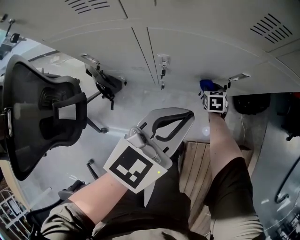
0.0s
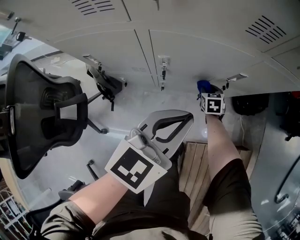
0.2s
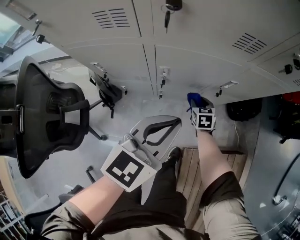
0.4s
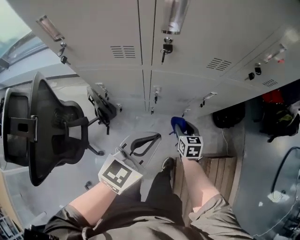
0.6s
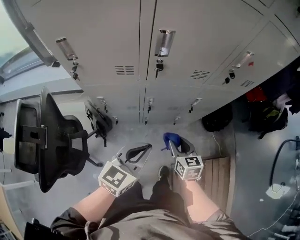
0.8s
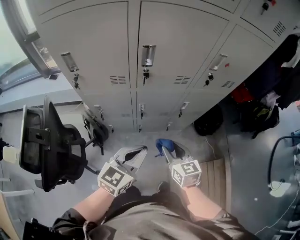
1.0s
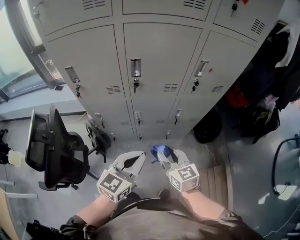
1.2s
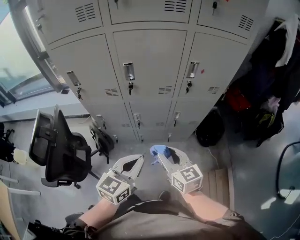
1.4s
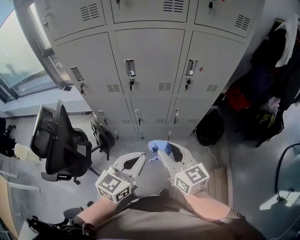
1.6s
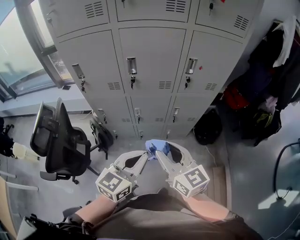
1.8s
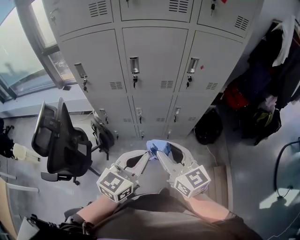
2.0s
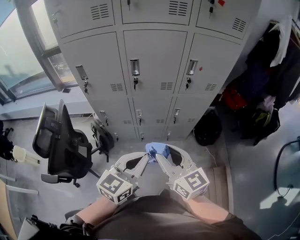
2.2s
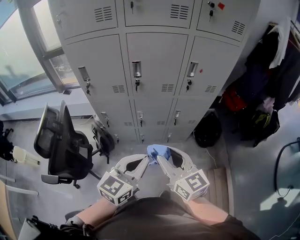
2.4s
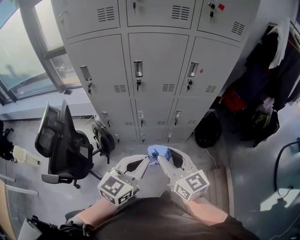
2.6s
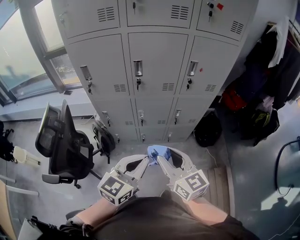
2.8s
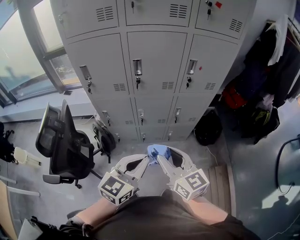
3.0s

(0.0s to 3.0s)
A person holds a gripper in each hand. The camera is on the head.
0.0s - 1.6s: The right gripper is displaced upward and backward by about 70 cm, and tilts its fingers some 40 degrees upward; the left gripper heads upward and backward, covering approximately 30 cm.
1.6s - 3.0s: The grippers both shift backward by some 5 cm.

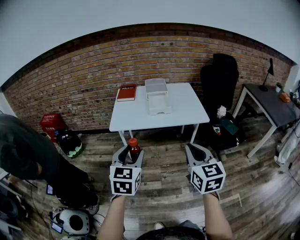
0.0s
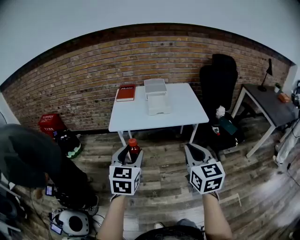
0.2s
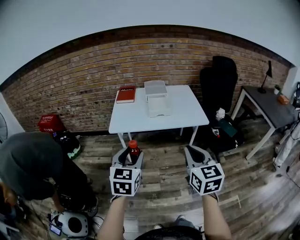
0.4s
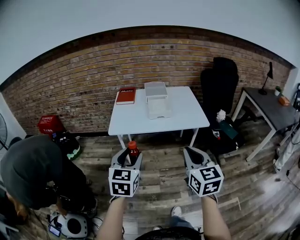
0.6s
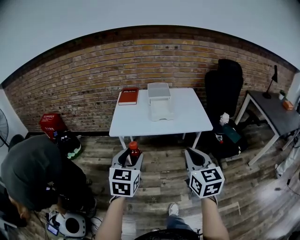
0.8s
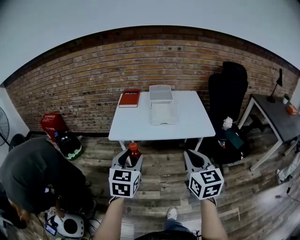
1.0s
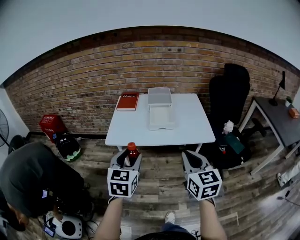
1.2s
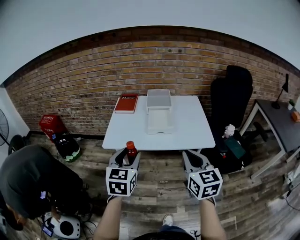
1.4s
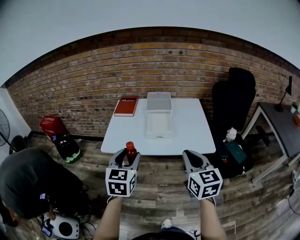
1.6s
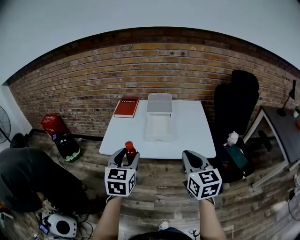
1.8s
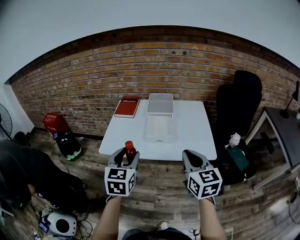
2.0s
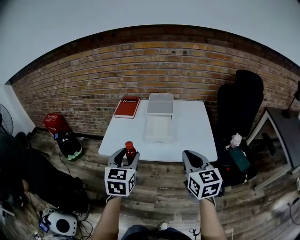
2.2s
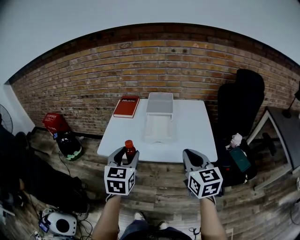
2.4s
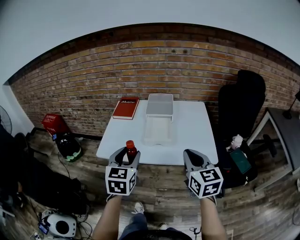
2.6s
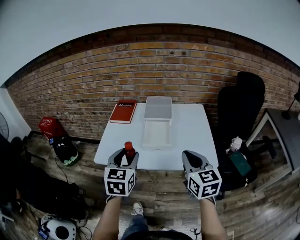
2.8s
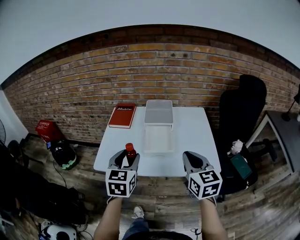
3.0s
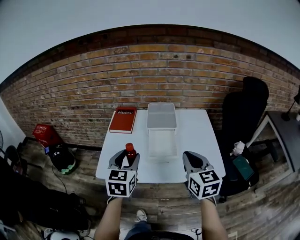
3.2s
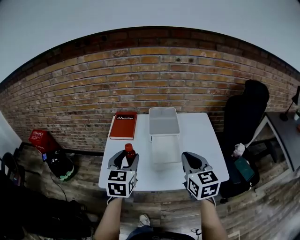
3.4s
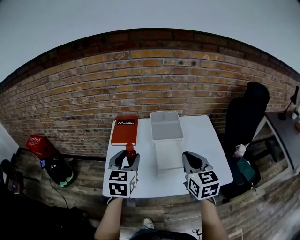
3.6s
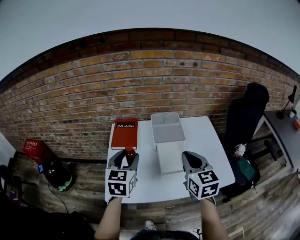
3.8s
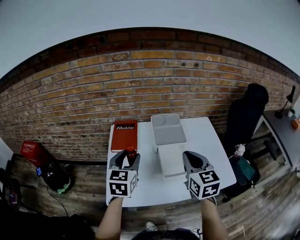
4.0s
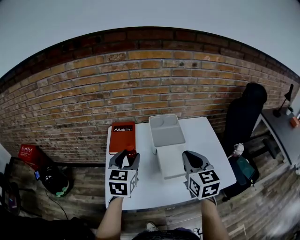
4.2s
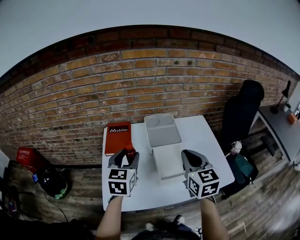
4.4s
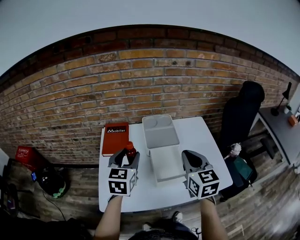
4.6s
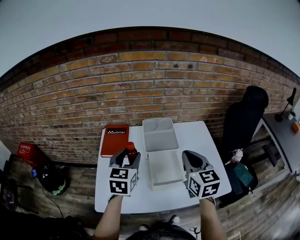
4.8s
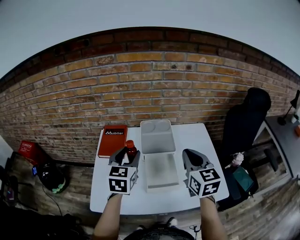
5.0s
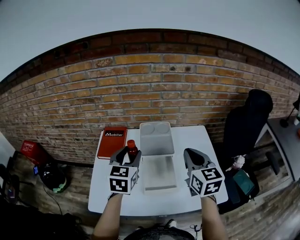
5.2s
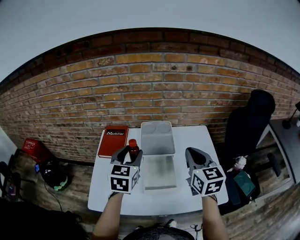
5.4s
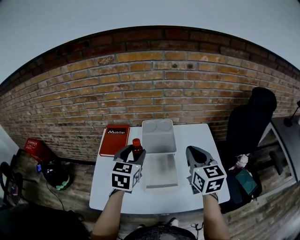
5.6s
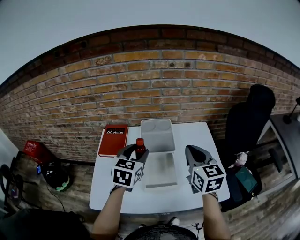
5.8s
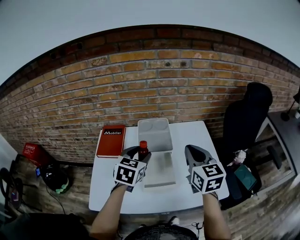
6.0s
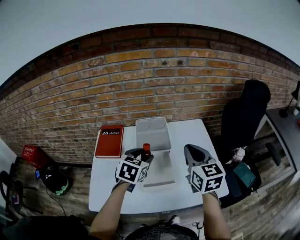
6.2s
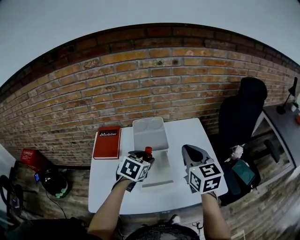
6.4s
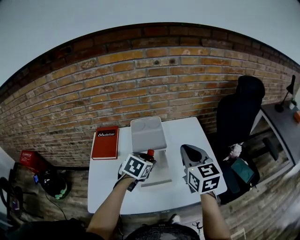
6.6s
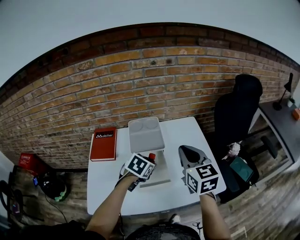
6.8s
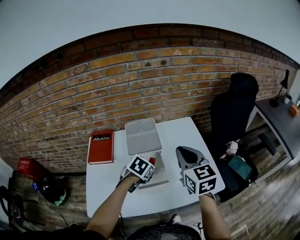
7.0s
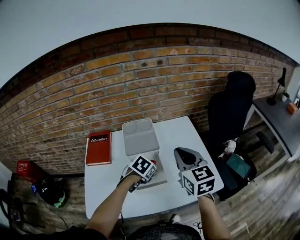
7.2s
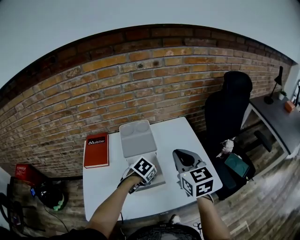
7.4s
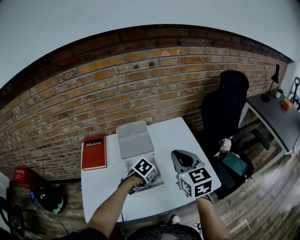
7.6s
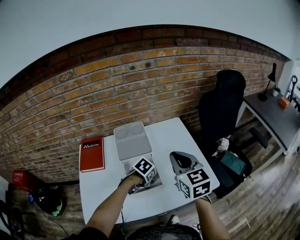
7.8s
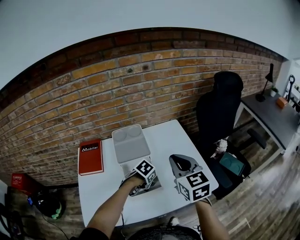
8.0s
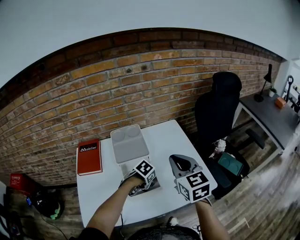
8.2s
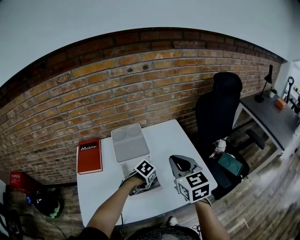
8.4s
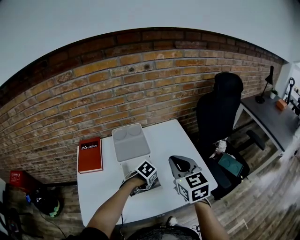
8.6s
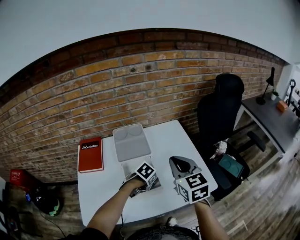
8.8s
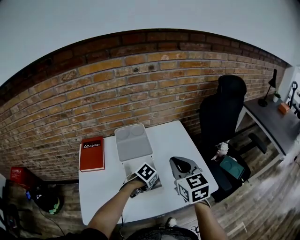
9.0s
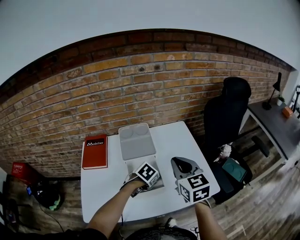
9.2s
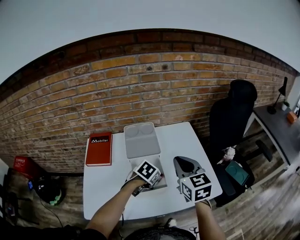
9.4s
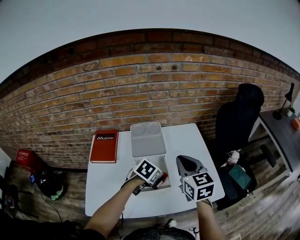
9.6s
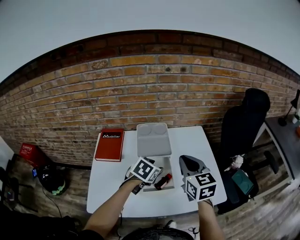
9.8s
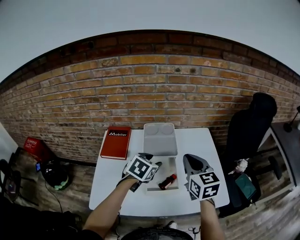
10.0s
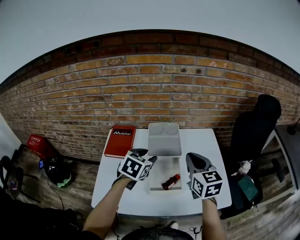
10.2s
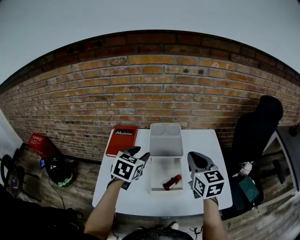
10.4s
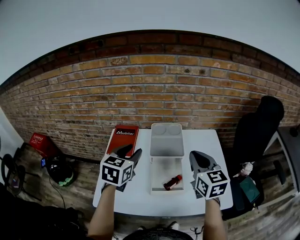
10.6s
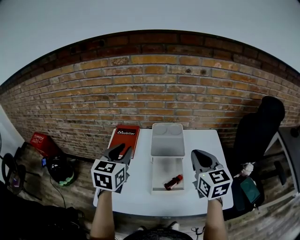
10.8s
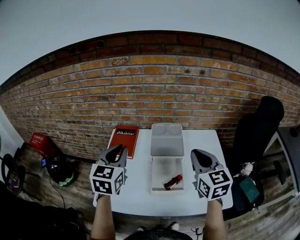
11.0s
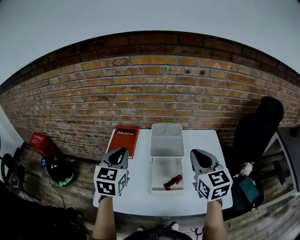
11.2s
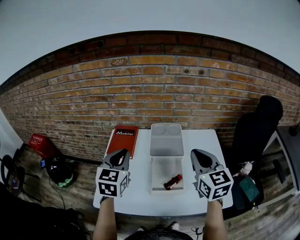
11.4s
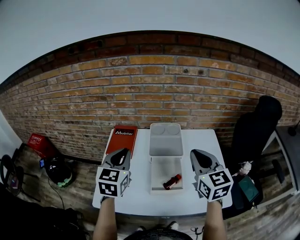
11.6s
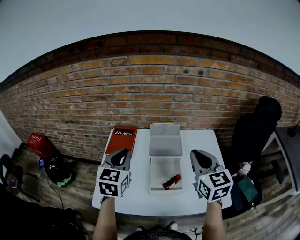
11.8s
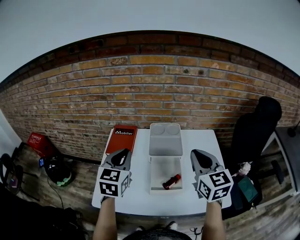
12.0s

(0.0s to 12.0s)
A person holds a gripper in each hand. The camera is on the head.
0.0s - 1.6s: Both grippers travel together forward, roughly 20 cm.
1.6s - 3.0s: The grippers both shift forward by about 15 cm.
3.0s - 4.4s: The grippers both shift forward and to the left by about 20 cm.
4.4s - 6.0s: The right gripper goes about 10 cm to the right and forward, while the left gripper goes some 15 cm to the right.
6.0s - 7.6s: The left gripper goes roughly 20 cm downward, and tilts its fingers some 40 degrees downward.
7.6s - 9.0s: The grippers stay close to where they were, moving slightly.
9.0s - 10.4s: The left gripper travels upward by approximately 20 cm, and points its fingers approximately 40 degrees further upward; the right gripper changes place by roughly 5 cm.
10.4s - 12.0s: The left gripper is displaced to the left and upward by roughly 10 cm, swivels approximately 20 degrees, and closes up.

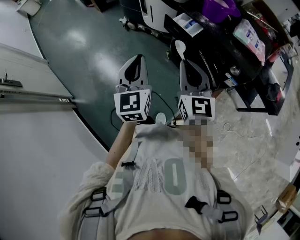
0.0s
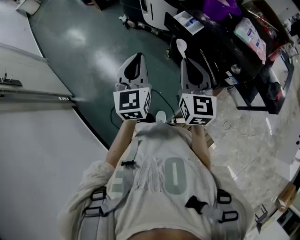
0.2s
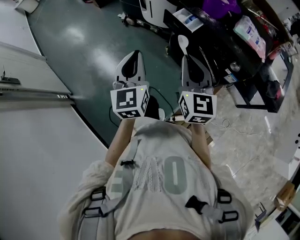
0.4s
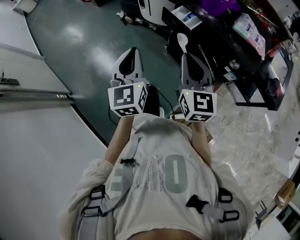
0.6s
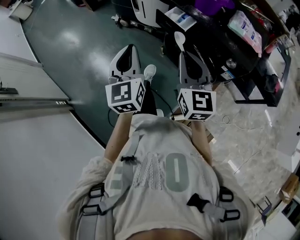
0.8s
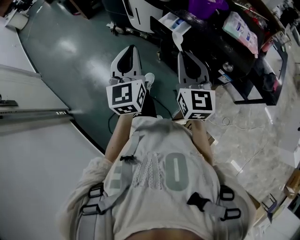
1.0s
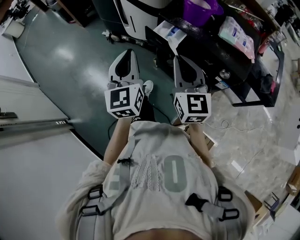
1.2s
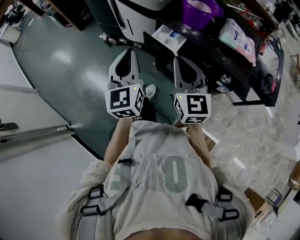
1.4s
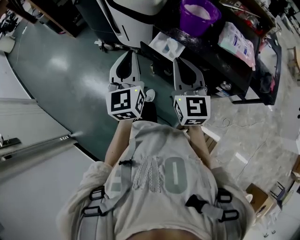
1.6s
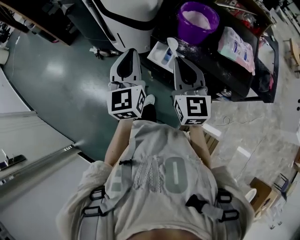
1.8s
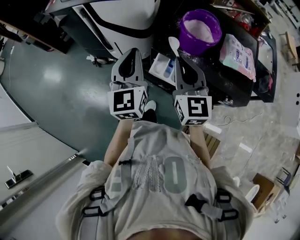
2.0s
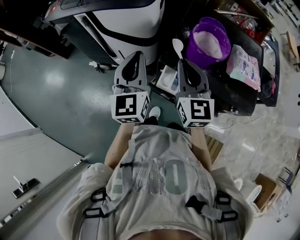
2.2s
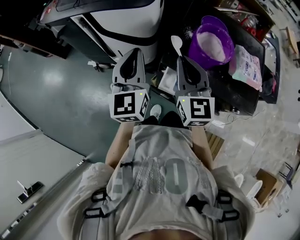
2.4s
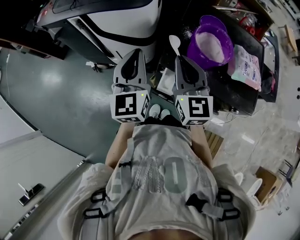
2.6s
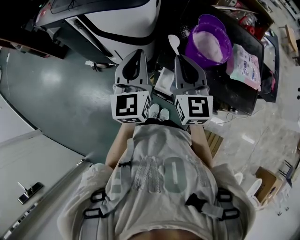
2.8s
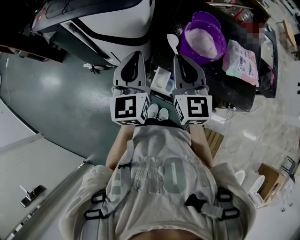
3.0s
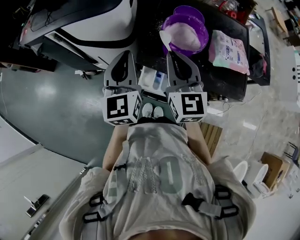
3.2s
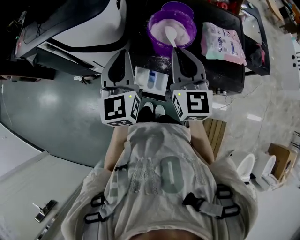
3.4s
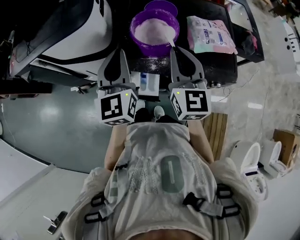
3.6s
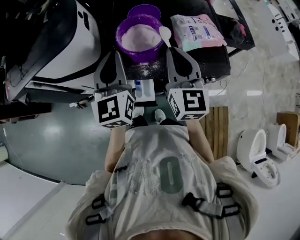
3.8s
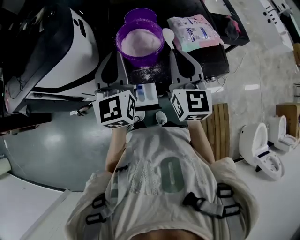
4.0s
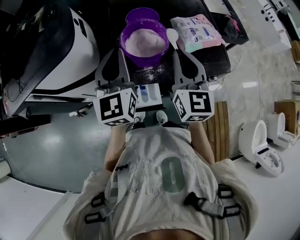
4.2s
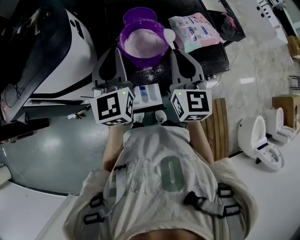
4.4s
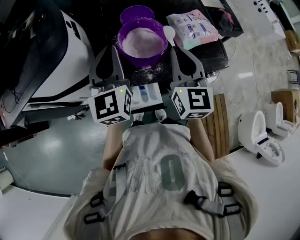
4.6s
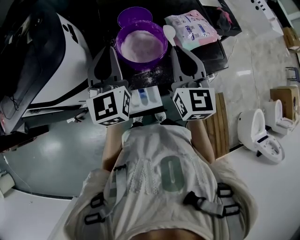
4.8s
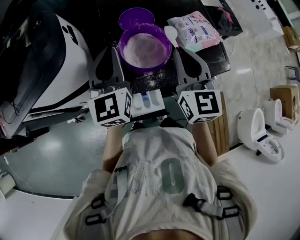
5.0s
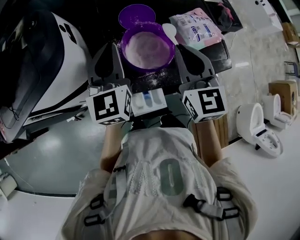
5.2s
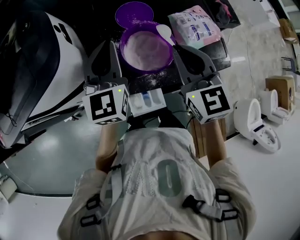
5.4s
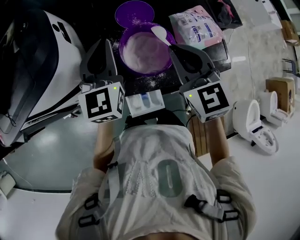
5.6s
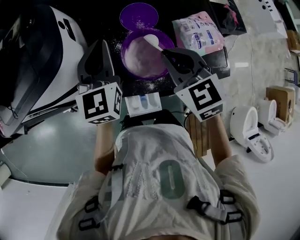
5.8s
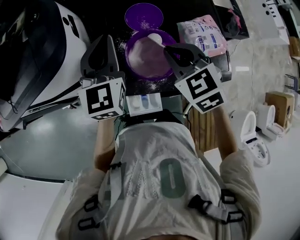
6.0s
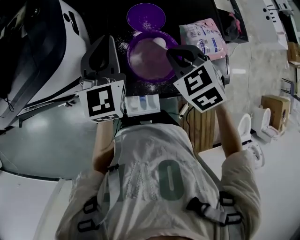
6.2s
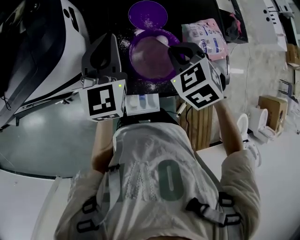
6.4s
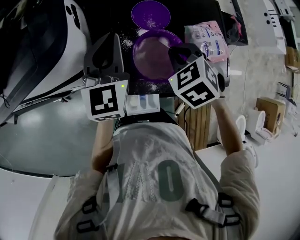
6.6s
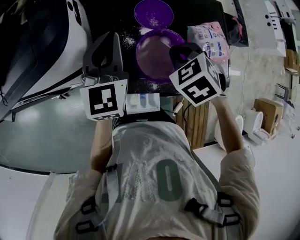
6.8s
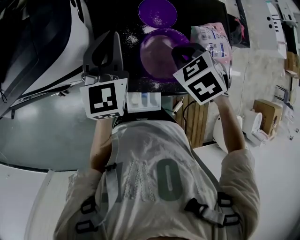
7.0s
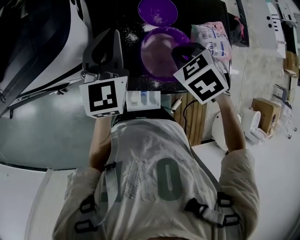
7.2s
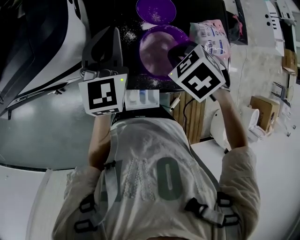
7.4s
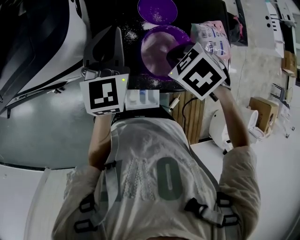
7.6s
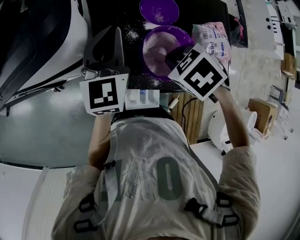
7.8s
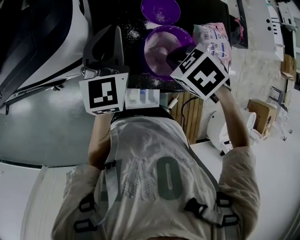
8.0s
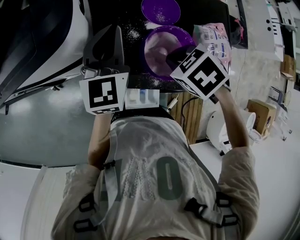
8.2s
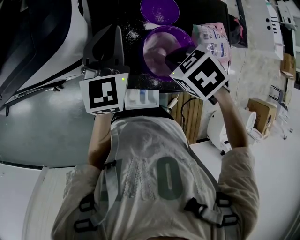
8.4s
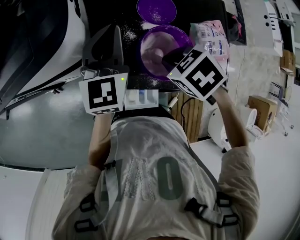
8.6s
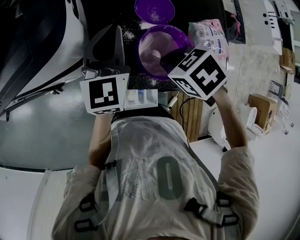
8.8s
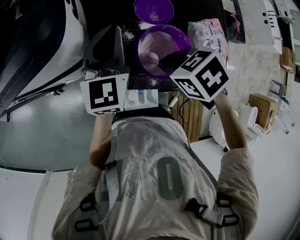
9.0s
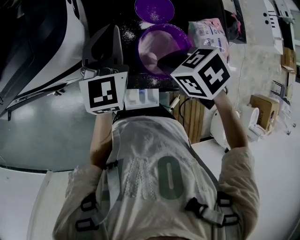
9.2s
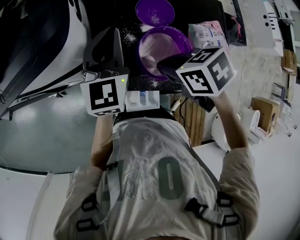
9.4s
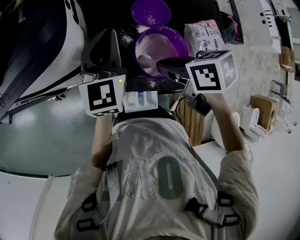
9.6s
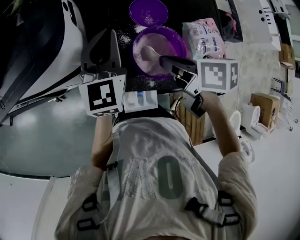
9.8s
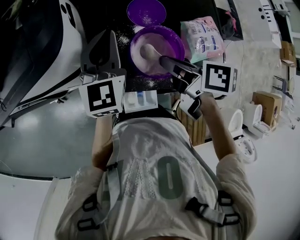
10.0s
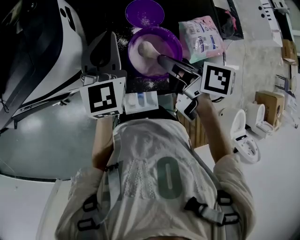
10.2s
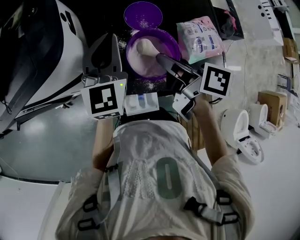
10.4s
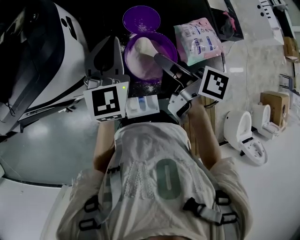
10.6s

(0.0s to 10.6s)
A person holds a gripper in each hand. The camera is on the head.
0.0s - 1.6s: The two grippers go some 20 cm forward.
1.6s - 3.0s: Both grippers travel together forward, about 25 cm.
3.0s - 4.6s: The right gripper changes place by approximately 15 cm, and turns by some 30 degrees; the left gripper changes place by roughly 15 cm, and turns by some 20 degrees.
4.6s - 6.0s: Both grippers travel together forward, roughly 10 cm. The right gripper angles its fingers downward, by about 40 degrees.
6.0s - 7.6s: The right gripper shifts approximately 5 cm downward, and angles its fingers downward, by approximately 40 degrees.
7.6s - 9.0s: There are only small adjustments of the grippers.
9.0s - 10.6s: The right gripper travels upward by approximately 10 cm, and tips its fingers upward by roughly 60 degrees. The left gripper moves about 5 cm.
